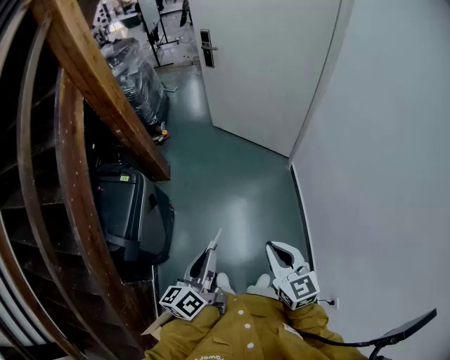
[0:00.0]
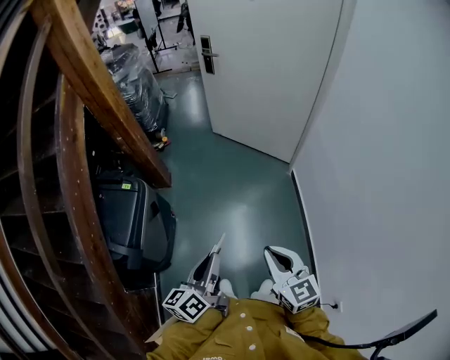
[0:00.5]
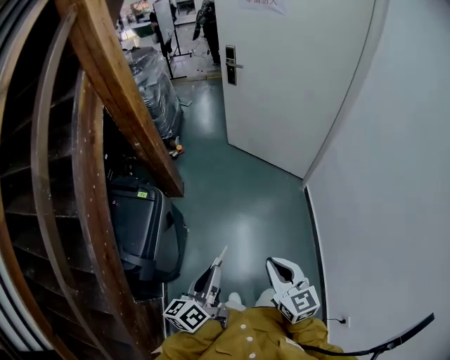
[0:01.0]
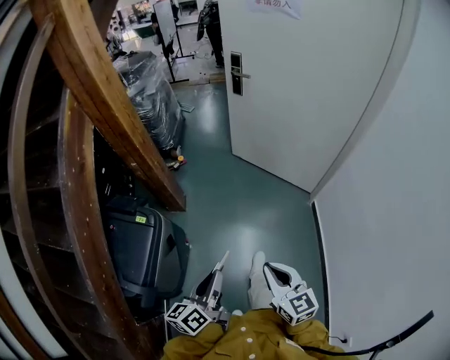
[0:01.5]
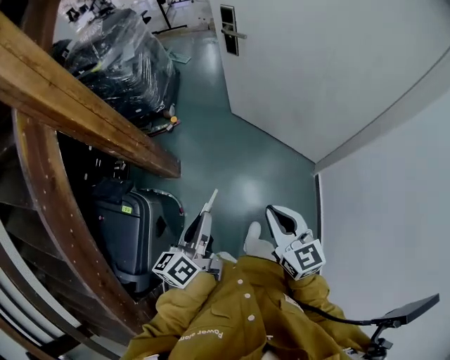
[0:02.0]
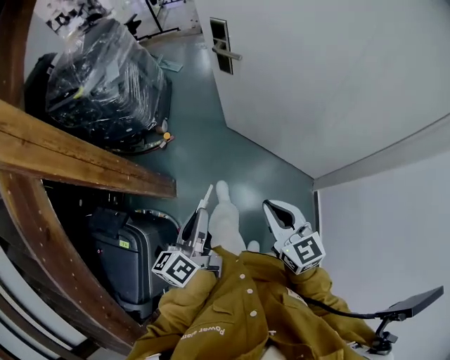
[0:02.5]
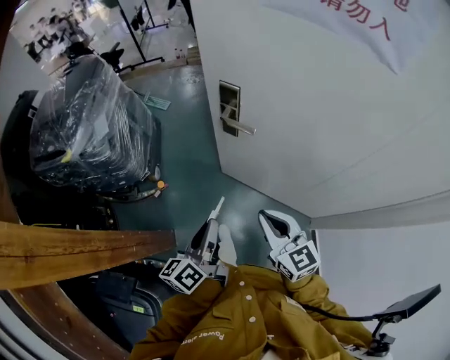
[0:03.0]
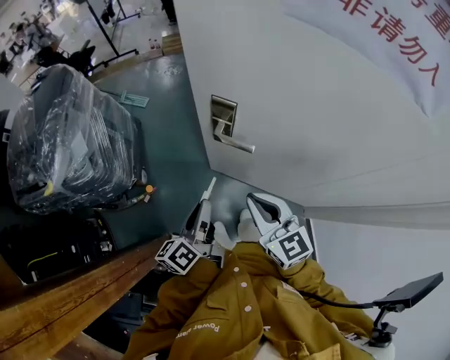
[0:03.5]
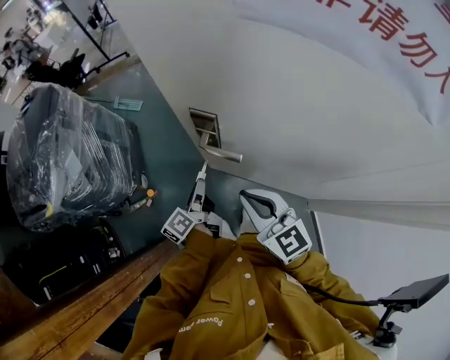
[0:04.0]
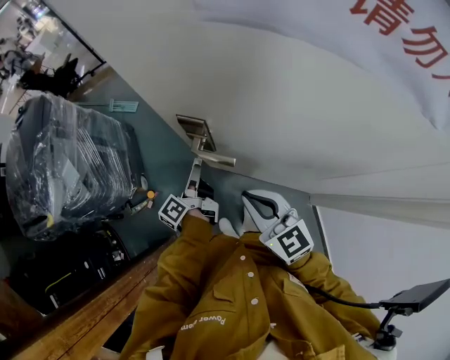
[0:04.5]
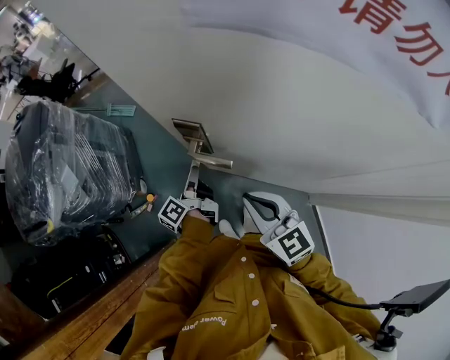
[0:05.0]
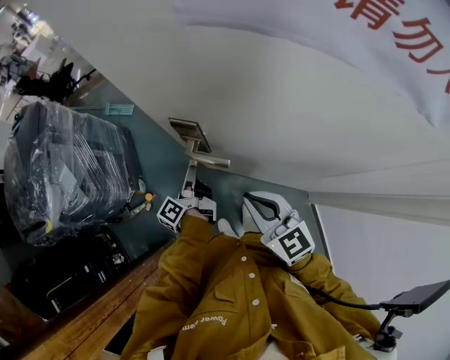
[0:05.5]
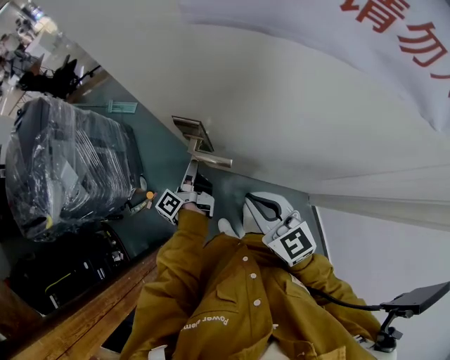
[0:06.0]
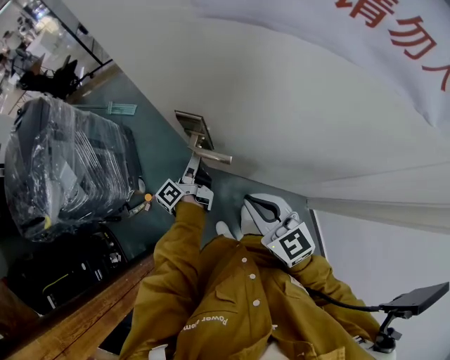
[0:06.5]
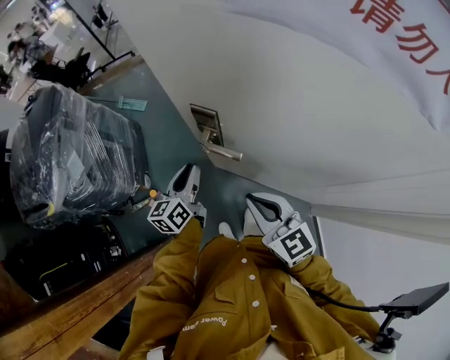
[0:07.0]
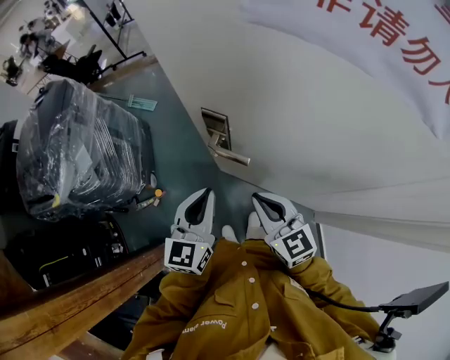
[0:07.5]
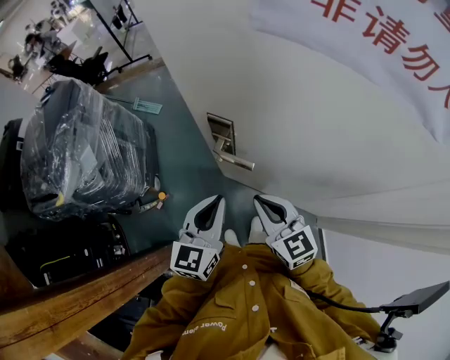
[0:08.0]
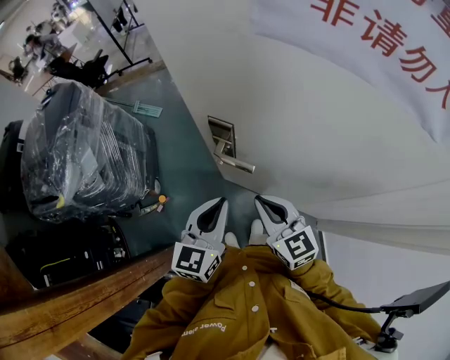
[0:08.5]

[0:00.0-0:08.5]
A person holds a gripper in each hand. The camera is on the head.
0:00.0 to 0:02.0: The two grippers travel together, forward, some 50 cm.
0:02.0 to 0:04.0: The pair of grippers is taken forward, some 70 cm. The left gripper swivels approximately 20 degrees.
0:04.0 to 0:06.5: The left gripper goes some 10 cm forward, and opens its fingers.
0:06.5 to 0:08.5: The left gripper moves upward and backward, approximately 25 cm, rotates around the line of its fingers by approximately 80 degrees, clockwise from behind, and closes.

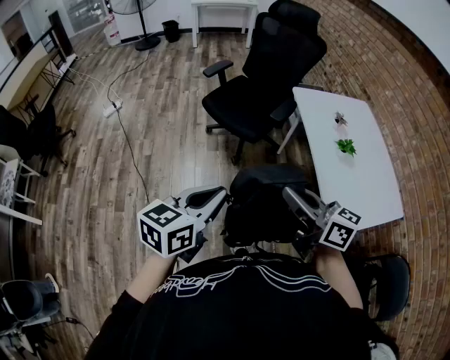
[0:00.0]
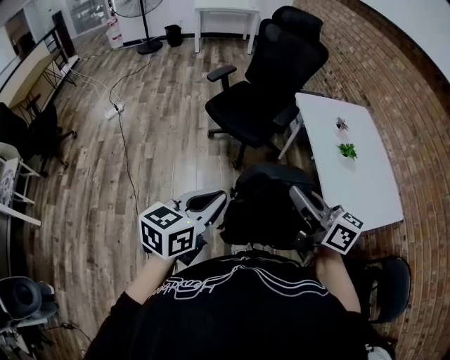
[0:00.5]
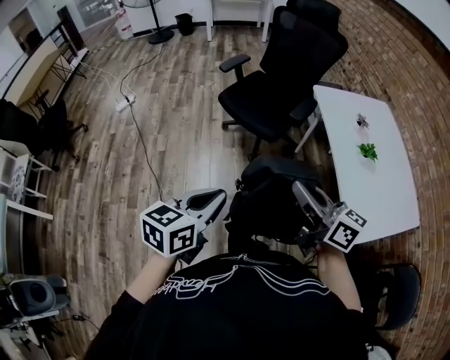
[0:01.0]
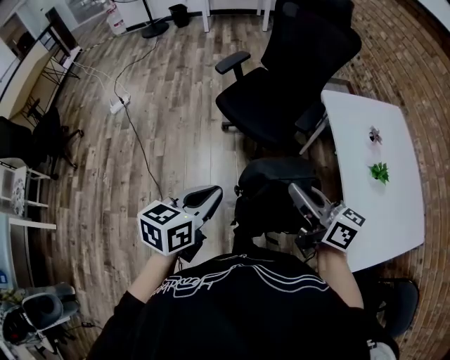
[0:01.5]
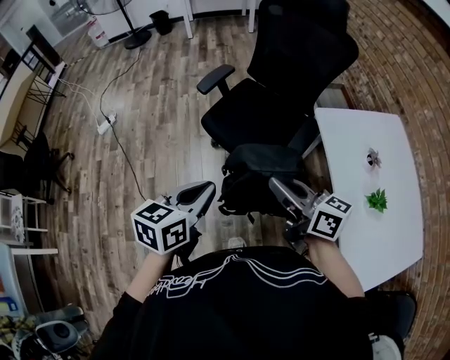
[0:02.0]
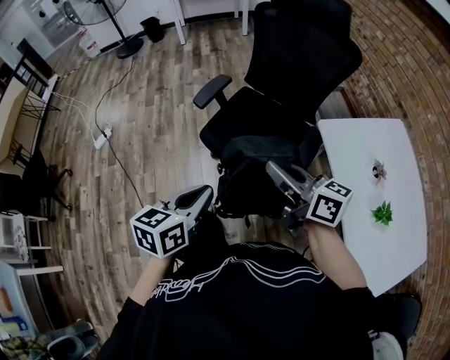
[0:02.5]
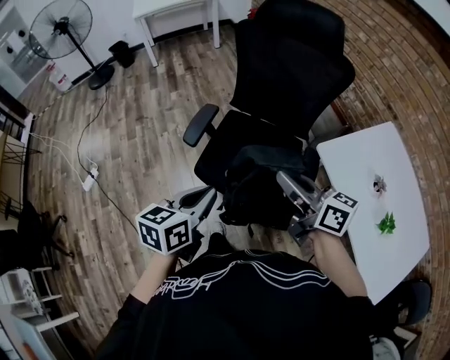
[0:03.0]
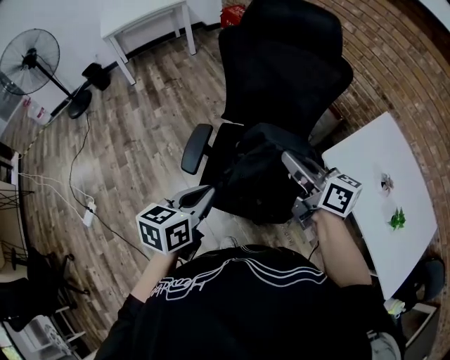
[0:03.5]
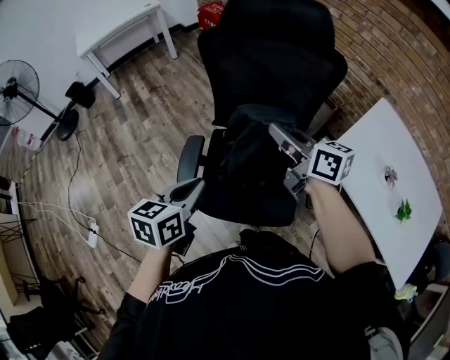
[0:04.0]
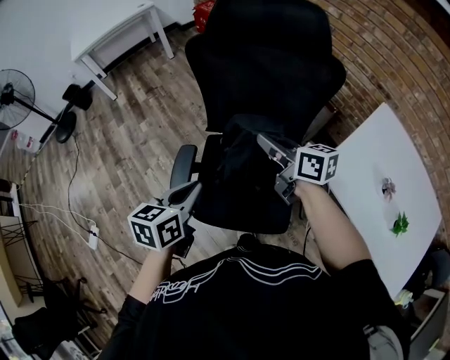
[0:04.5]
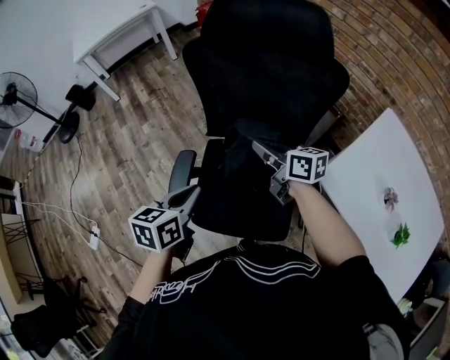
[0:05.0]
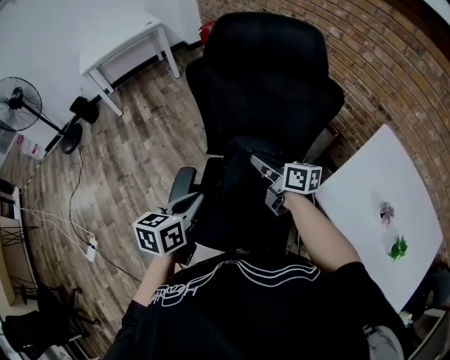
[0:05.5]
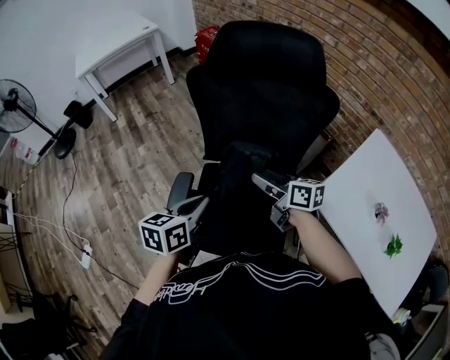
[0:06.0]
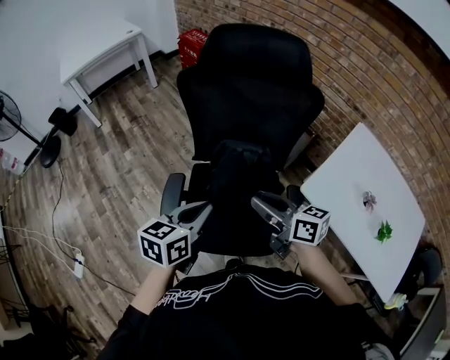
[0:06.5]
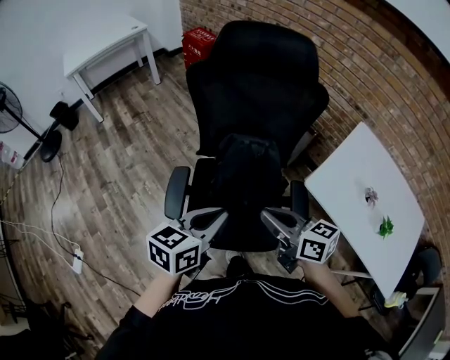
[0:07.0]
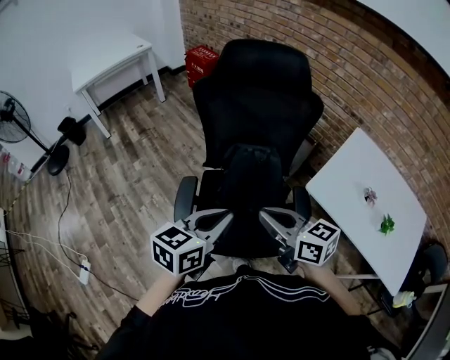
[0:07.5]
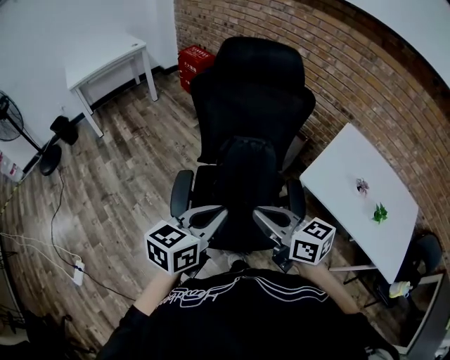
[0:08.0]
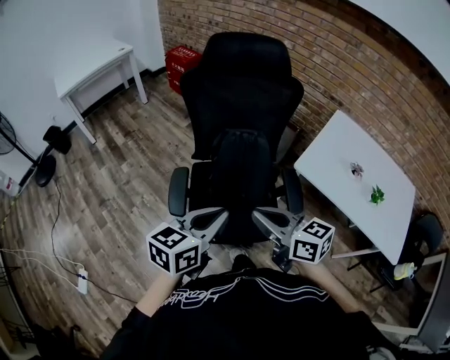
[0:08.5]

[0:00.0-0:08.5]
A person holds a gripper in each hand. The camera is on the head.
0:00.0 to 0:02.0: Both grippers travel together forward, about 30 cm.
0:02.0 to 0:04.0: The pair of grippers is taken about 40 cm. The right gripper changes its angle by approximately 30 degrees. Meanwhile the left gripper swivels approximately 30 degrees.
0:04.0 to 0:06.5: The right gripper is displaced backward and downward by roughly 10 cm, and opens and closes again. Meanwhile the left gripper is displaced to the right by some 5 cm.
0:06.5 to 0:08.5: The right gripper goes some 15 cm backward, and closes up. Meanwhile the left gripper moves backward and upward, about 15 cm.

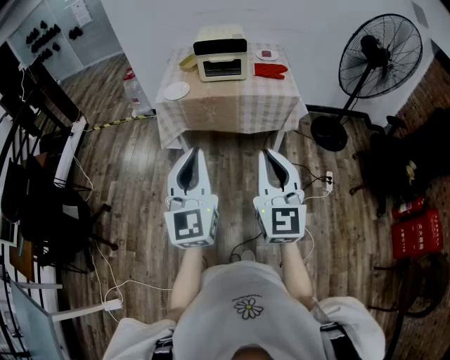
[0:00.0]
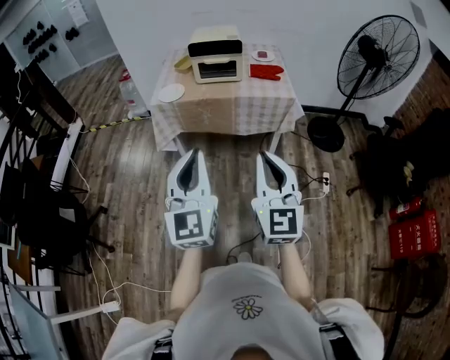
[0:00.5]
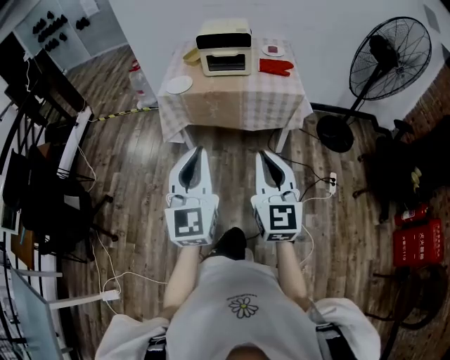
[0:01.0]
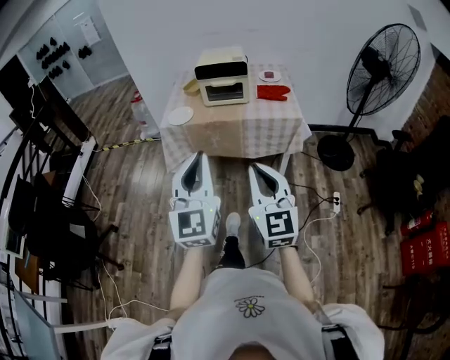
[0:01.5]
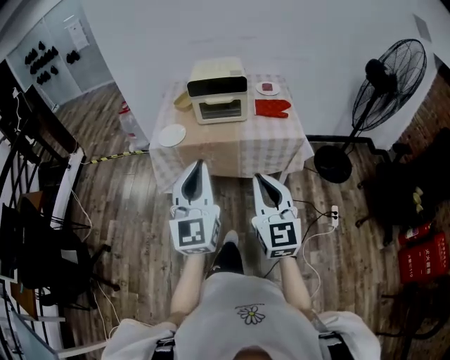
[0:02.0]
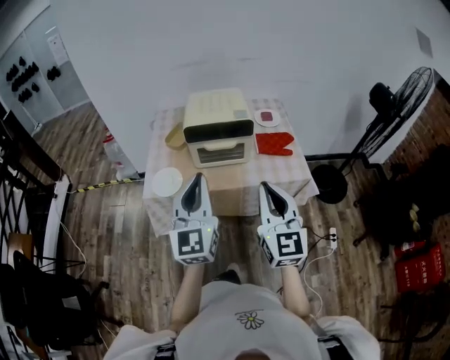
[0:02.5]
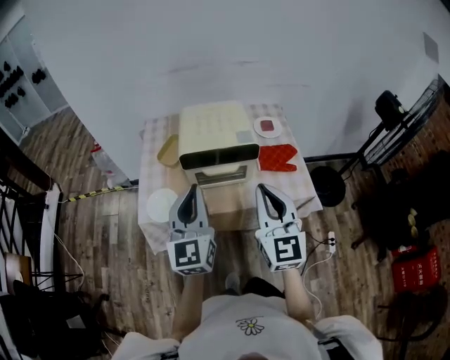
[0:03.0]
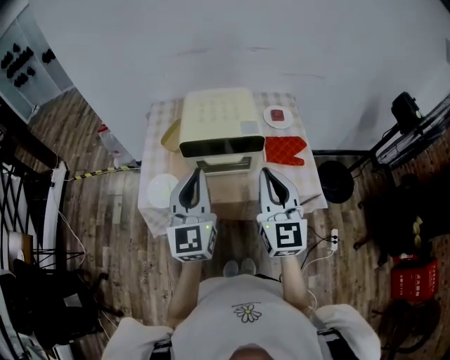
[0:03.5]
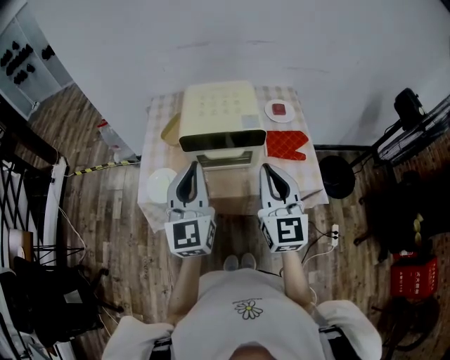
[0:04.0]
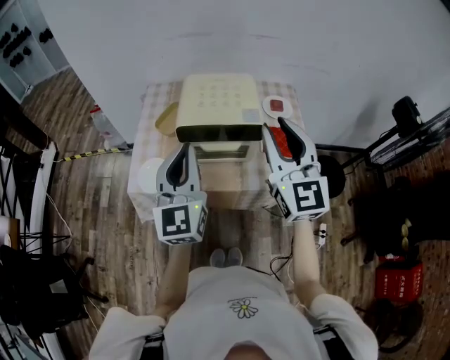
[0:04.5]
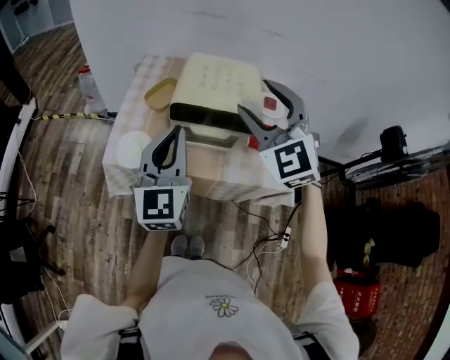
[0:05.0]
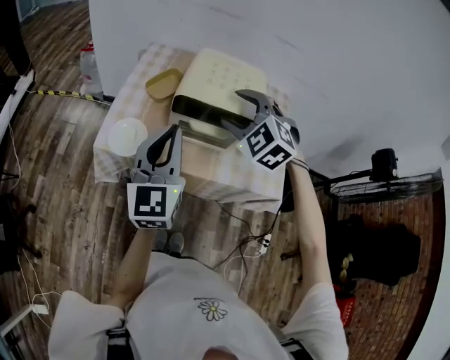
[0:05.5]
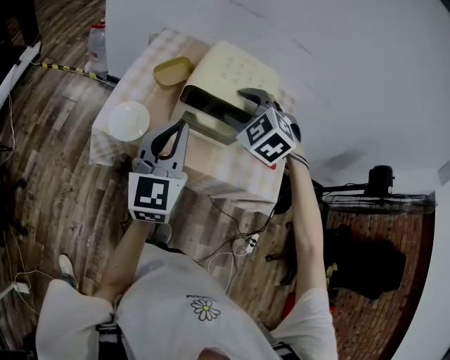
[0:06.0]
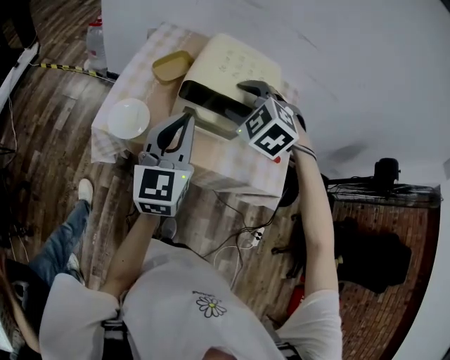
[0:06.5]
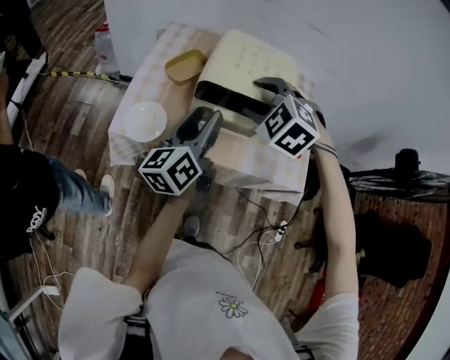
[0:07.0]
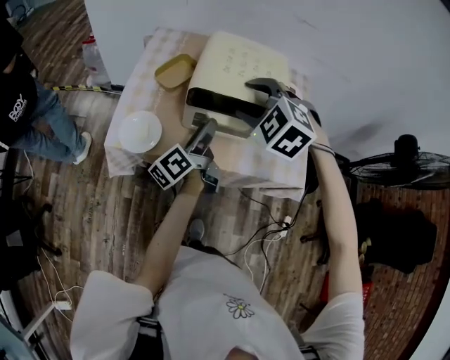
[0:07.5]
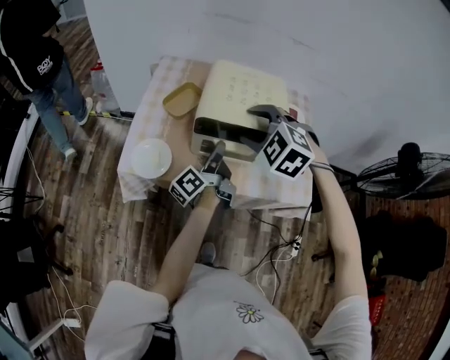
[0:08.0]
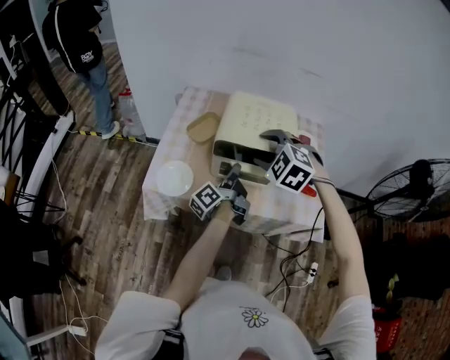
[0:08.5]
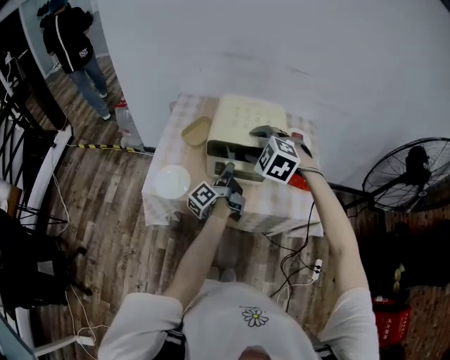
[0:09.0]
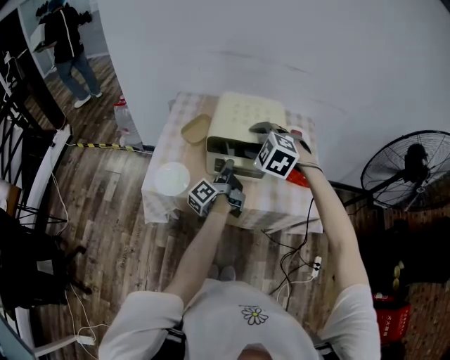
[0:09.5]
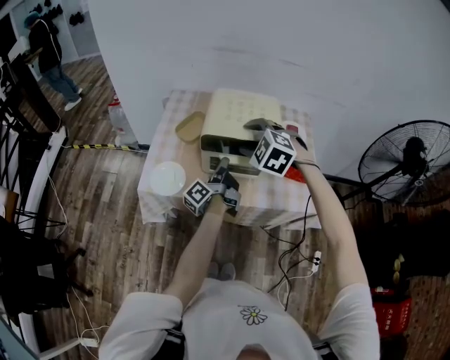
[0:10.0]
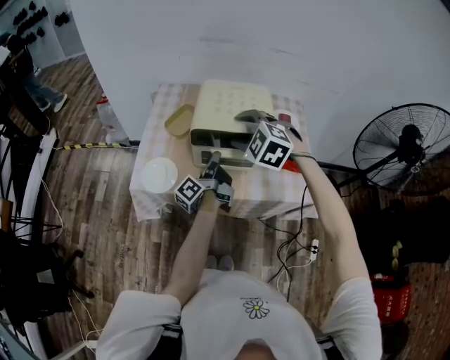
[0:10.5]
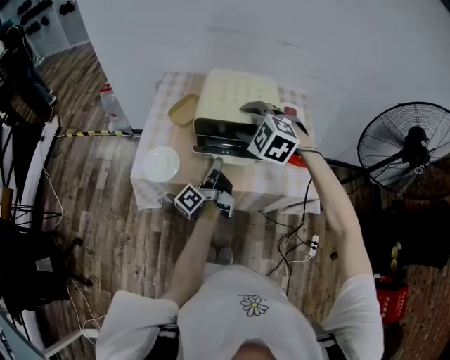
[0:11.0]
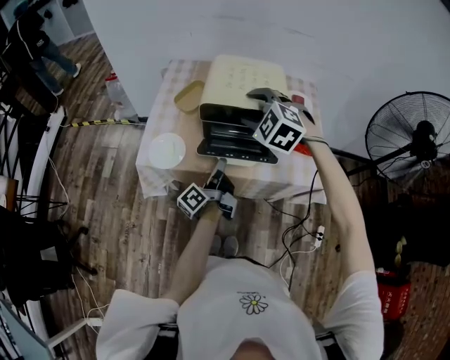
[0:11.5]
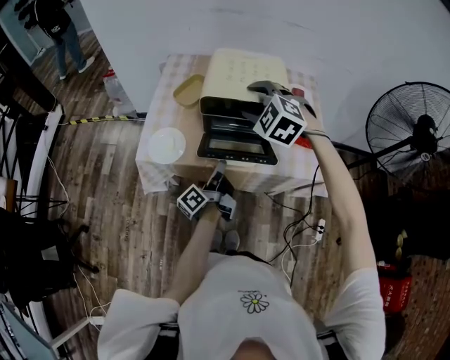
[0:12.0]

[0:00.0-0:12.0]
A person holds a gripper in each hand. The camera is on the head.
0:00.0 to 0:02.0: Both grippers travel together forward, some 20 cm.
0:02.0 to 0:04.0: The grippers both shift forward by approximately 35 cm.
0:04.0 to 0:06.0: The left gripper moves roughly 5 cm, while the right gripper travels forward and to the left by about 20 cm, tilts its fingers about 50 degrees downward, and opens.
0:06.0 to 0:08.0: The left gripper goes about 20 cm downward, forward and to the right, rotates around the line of its fingers by approximately 80 degrees, counterclockwise from behind, and opens and closes again.
0:08.0 to 0:10.0: The grippers make only small movements.
0:10.0 to 0:12.0: The left gripper travels backward and downward by roughly 10 cm.
